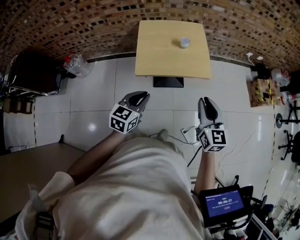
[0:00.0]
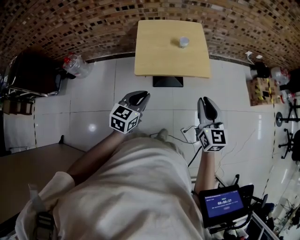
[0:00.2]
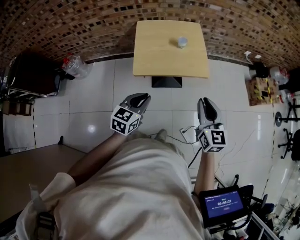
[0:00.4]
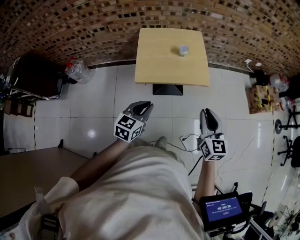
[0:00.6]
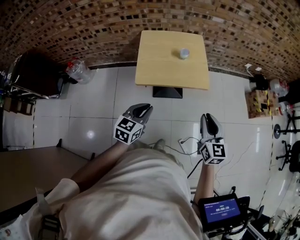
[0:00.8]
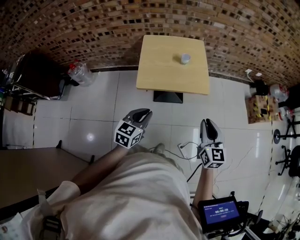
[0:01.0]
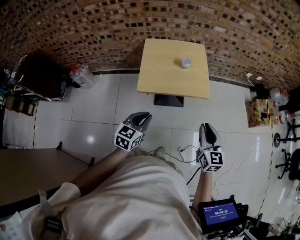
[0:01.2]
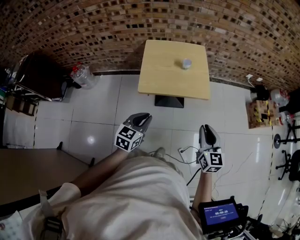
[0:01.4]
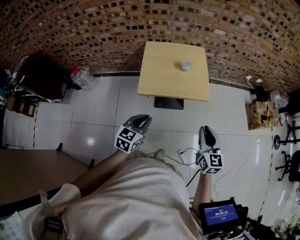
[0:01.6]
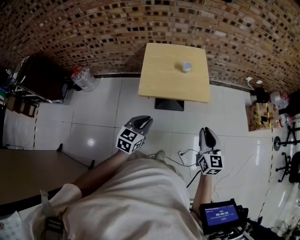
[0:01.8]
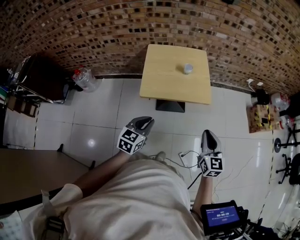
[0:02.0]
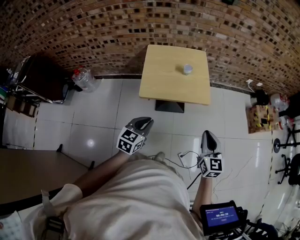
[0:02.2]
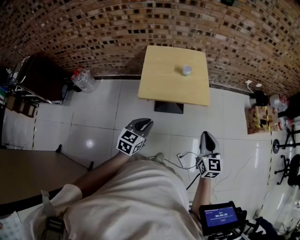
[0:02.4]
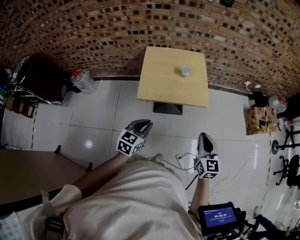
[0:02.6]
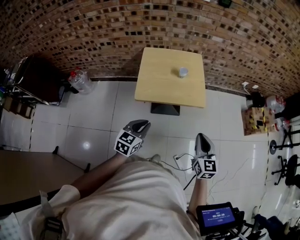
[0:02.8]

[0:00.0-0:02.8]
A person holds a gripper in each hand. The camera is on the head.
0:00.0 to 0:01.4: The right gripper moves roughly 5 cm.
0:01.4 to 0:02.8: Both grippers stay about where they are.

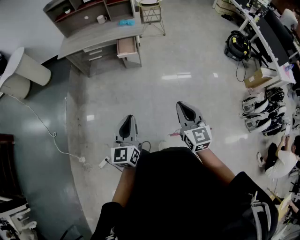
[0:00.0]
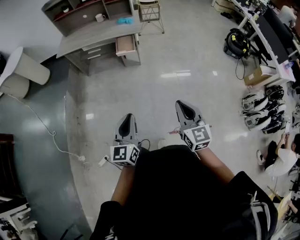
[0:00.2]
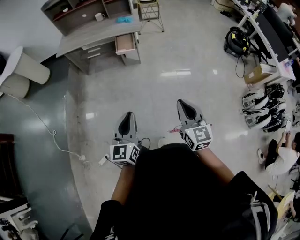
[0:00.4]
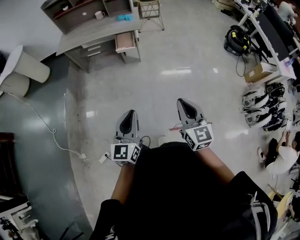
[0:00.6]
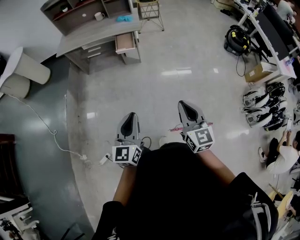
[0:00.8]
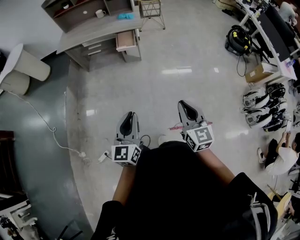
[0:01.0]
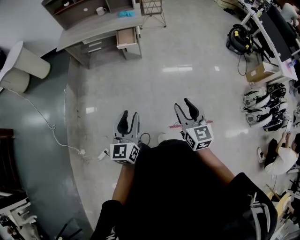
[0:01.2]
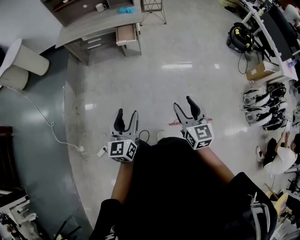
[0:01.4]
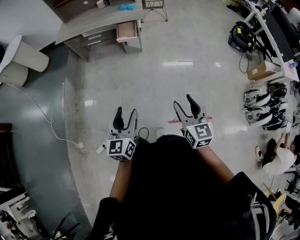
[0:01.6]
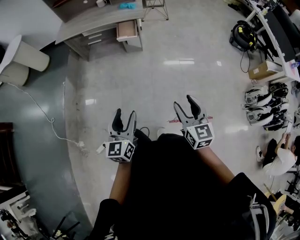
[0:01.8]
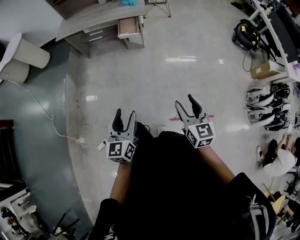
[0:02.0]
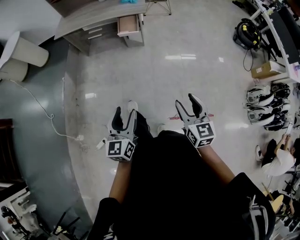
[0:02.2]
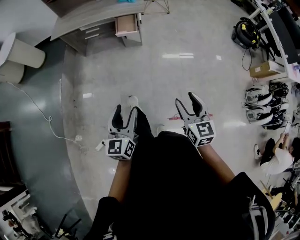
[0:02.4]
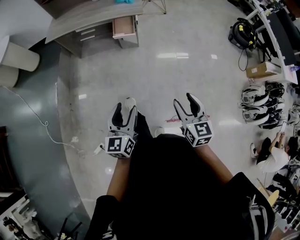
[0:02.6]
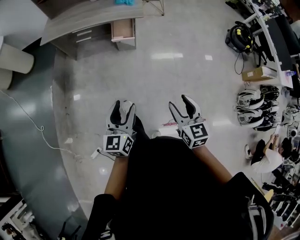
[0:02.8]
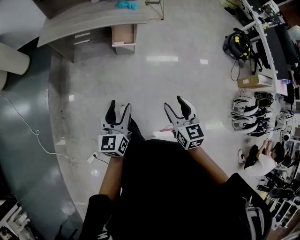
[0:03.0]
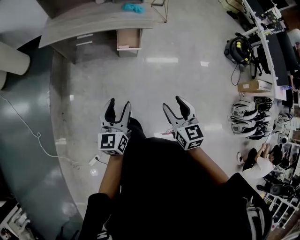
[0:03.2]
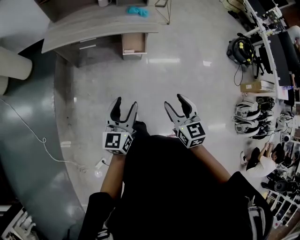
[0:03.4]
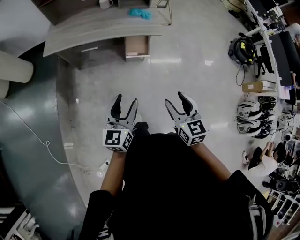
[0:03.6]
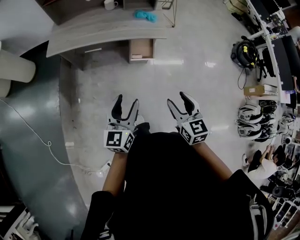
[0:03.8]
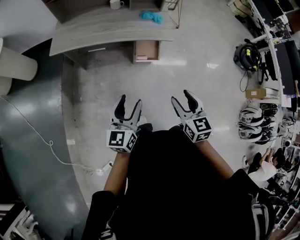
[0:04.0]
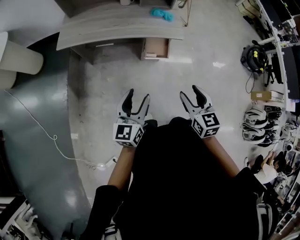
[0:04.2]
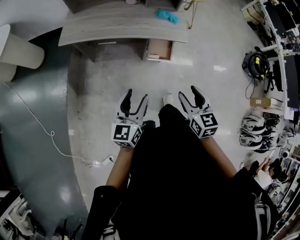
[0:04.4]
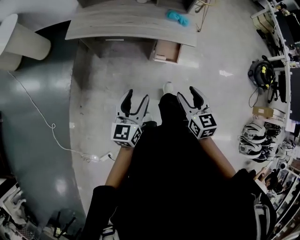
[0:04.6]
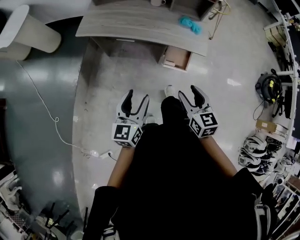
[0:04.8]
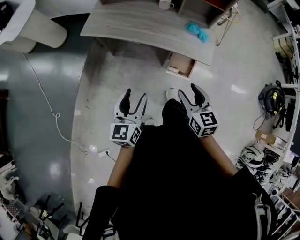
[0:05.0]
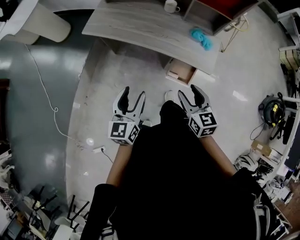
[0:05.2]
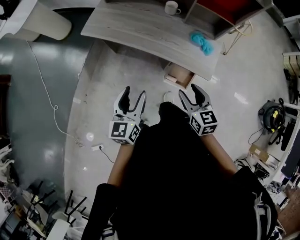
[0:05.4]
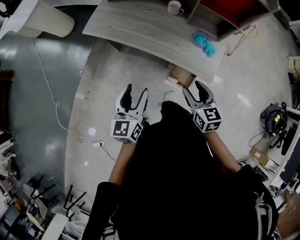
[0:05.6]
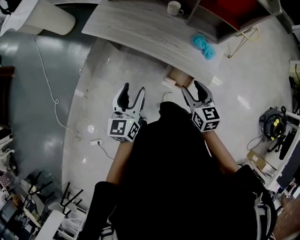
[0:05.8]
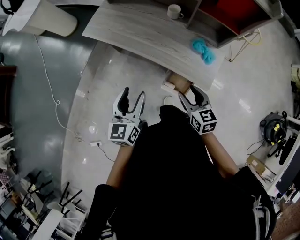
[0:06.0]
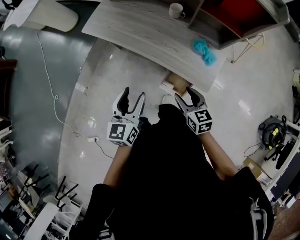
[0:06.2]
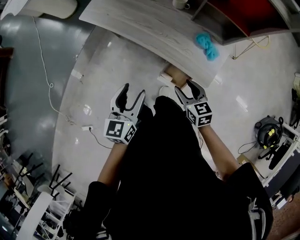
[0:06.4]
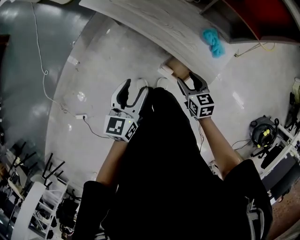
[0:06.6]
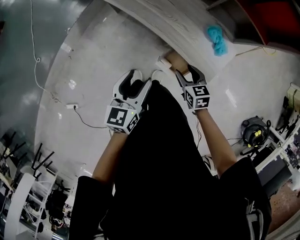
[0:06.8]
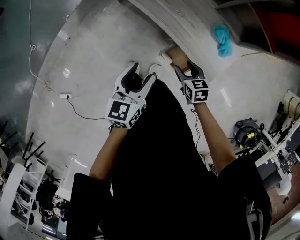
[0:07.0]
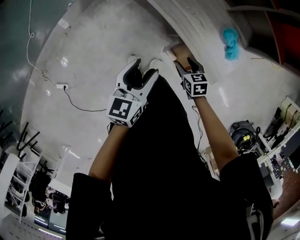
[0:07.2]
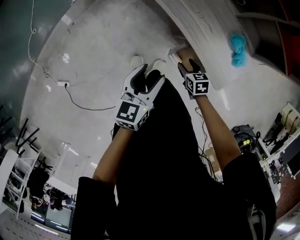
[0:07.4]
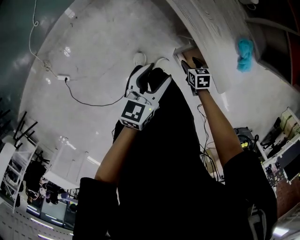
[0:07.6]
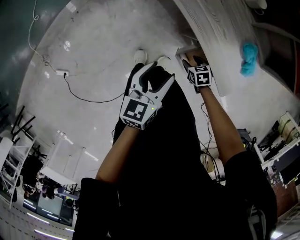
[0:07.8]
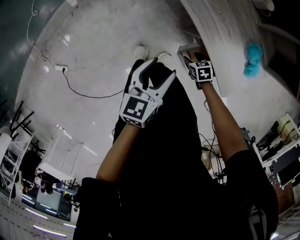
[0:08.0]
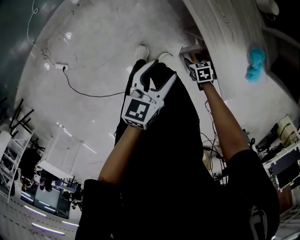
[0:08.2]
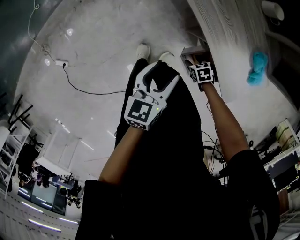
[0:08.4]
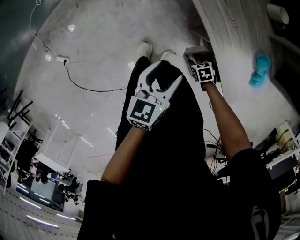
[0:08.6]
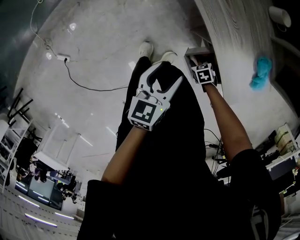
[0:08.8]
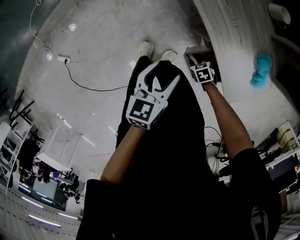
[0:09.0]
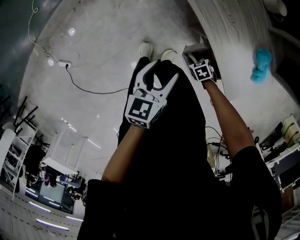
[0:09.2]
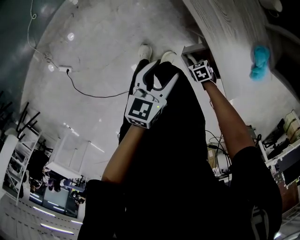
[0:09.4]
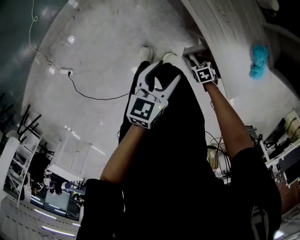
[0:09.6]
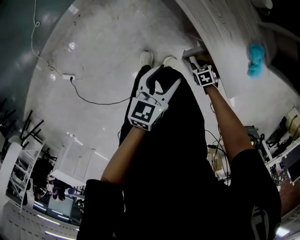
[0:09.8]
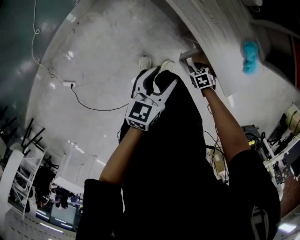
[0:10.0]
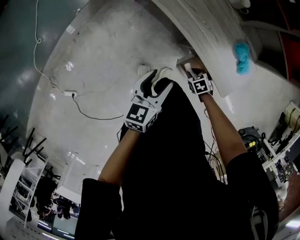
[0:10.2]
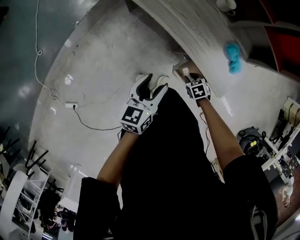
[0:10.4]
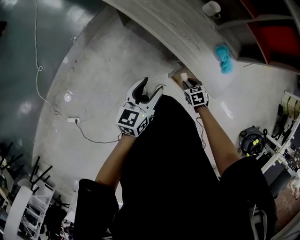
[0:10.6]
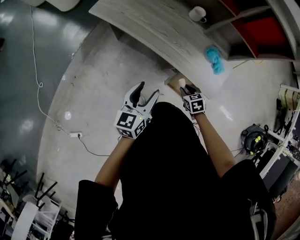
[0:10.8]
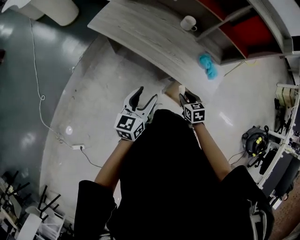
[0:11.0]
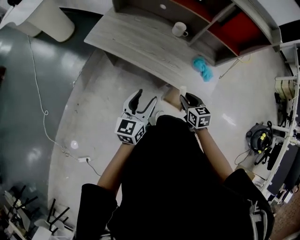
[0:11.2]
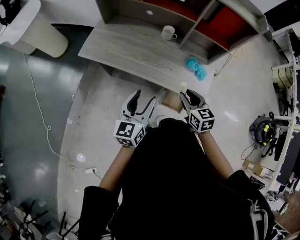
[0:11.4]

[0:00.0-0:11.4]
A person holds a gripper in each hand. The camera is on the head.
0:00.0 to 0:01.4: The right gripper shifts by roughly 5 cm, and opens up. The left gripper opens up.
0:01.4 to 0:02.8: Both grippers travel together forward, approximately 20 cm.
0:02.8 to 0:04.2: The grippers both shift forward and to the left by approximately 35 cm.
0:04.2 to 0:05.6: The right gripper moves about 35 cm, and swivels some 30 degrees. The left gripper moves some 25 cm, and turns by roughly 30 degrees.
0:05.6 to 0:07.2: The left gripper shifts approximately 15 cm downward; the right gripper goes approximately 30 cm downward, and changes its angle by about 40 degrees.
0:07.2 to 0:08.6: The left gripper heads downward, covering roughly 10 cm, while the right gripper shifts approximately 20 cm downward, and turns by roughly 30 degrees.
0:08.6 to 0:10.0: The right gripper is displaced upward by roughly 5 cm.
0:10.0 to 0:11.4: The left gripper travels upward by approximately 20 cm, and rotates about 30 degrees. Meanwhile the right gripper travels upward by approximately 40 cm, and tips its fingers upward by some 40 degrees.

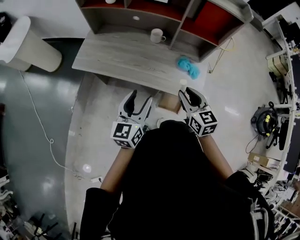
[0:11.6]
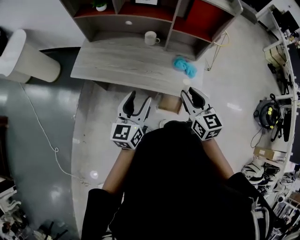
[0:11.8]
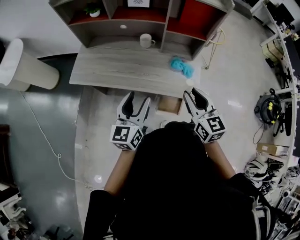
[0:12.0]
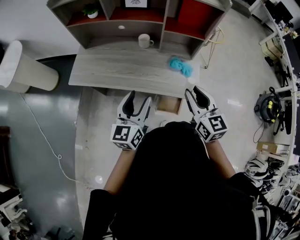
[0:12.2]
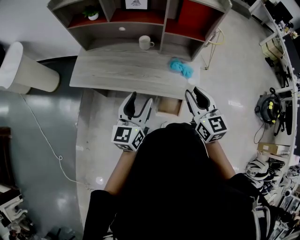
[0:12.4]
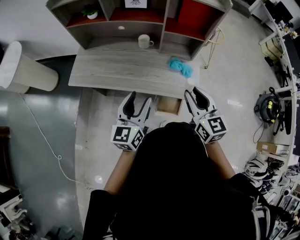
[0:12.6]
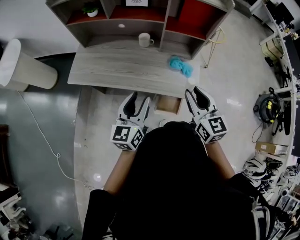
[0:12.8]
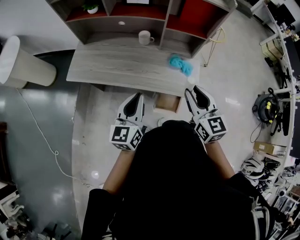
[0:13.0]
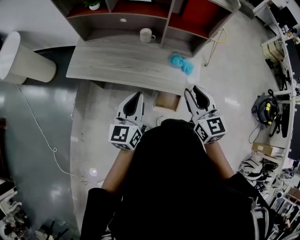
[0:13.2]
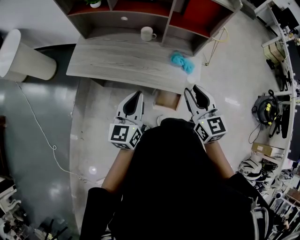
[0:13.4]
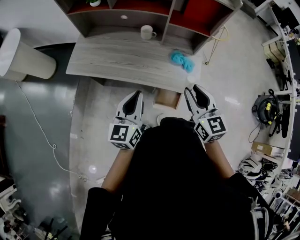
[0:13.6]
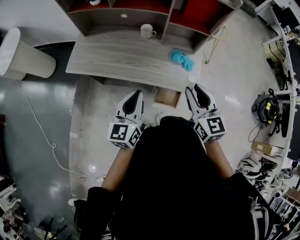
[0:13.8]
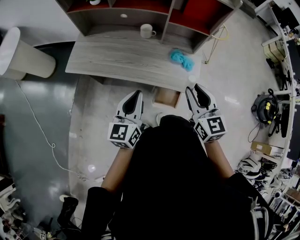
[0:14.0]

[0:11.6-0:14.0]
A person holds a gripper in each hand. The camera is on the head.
0:11.6 to 0:12.8: The right gripper is displaced upward and to the right by approximately 10 cm.
0:12.8 to 0:14.0: The left gripper closes up.

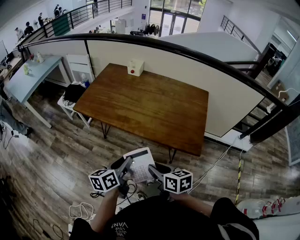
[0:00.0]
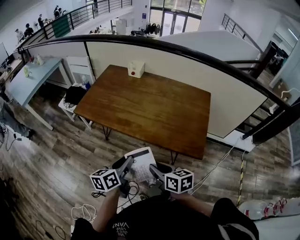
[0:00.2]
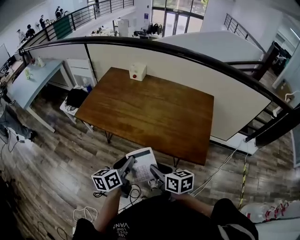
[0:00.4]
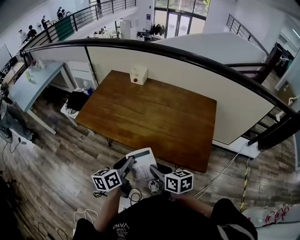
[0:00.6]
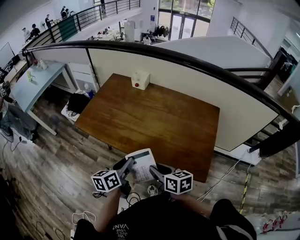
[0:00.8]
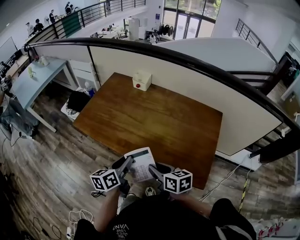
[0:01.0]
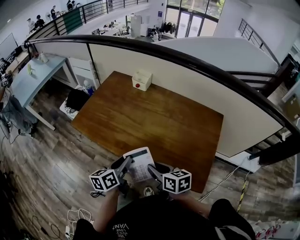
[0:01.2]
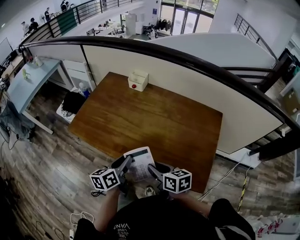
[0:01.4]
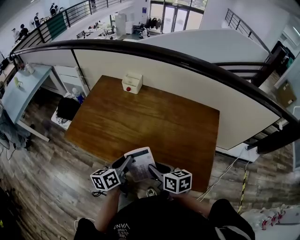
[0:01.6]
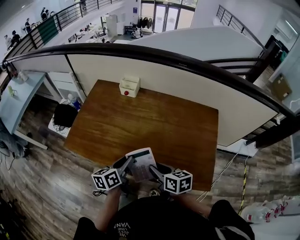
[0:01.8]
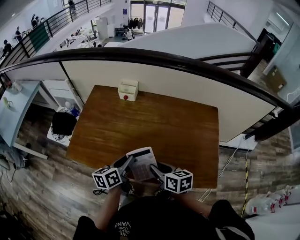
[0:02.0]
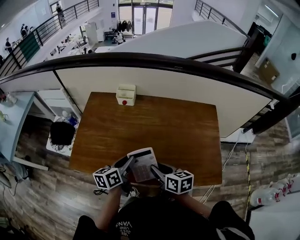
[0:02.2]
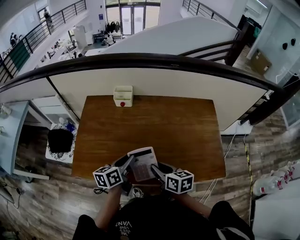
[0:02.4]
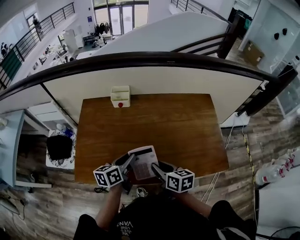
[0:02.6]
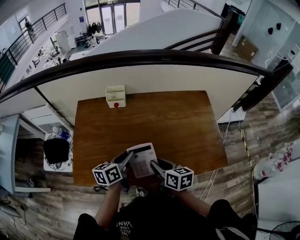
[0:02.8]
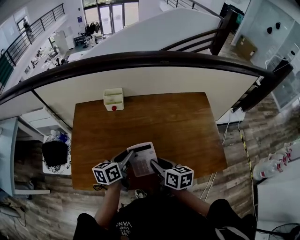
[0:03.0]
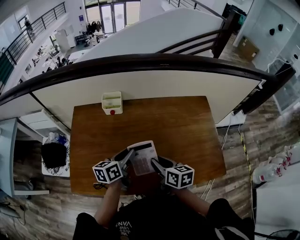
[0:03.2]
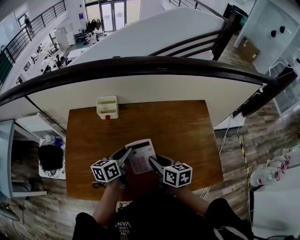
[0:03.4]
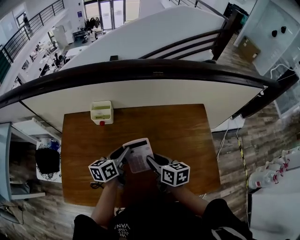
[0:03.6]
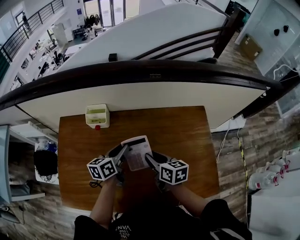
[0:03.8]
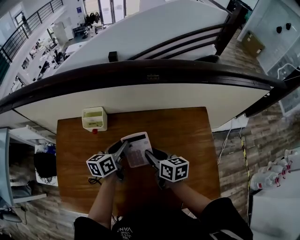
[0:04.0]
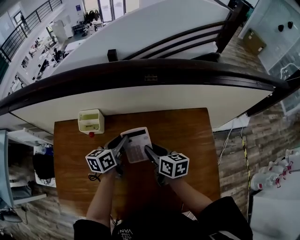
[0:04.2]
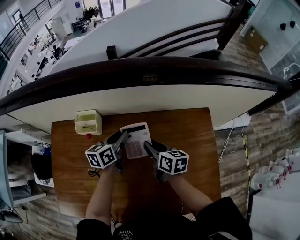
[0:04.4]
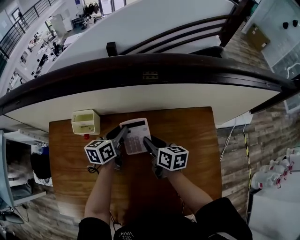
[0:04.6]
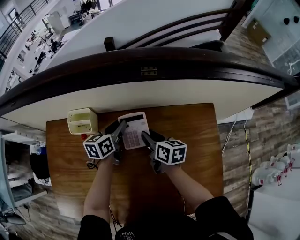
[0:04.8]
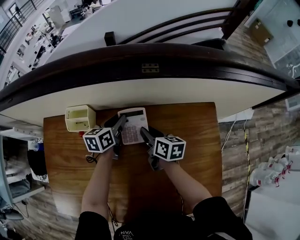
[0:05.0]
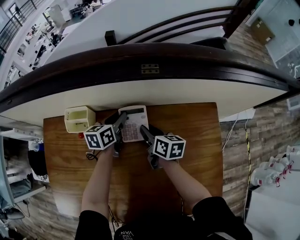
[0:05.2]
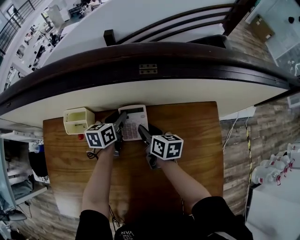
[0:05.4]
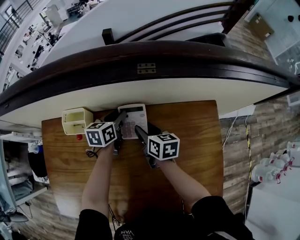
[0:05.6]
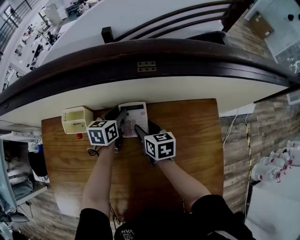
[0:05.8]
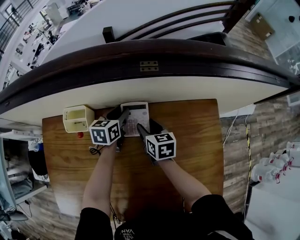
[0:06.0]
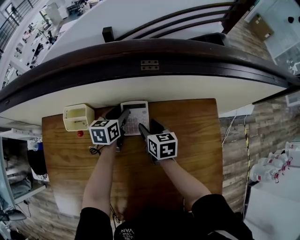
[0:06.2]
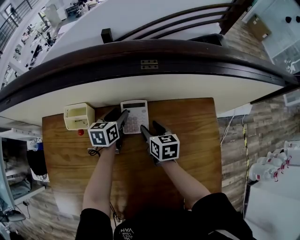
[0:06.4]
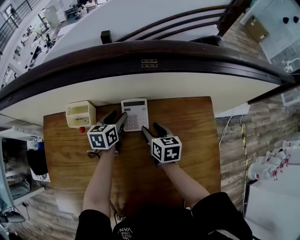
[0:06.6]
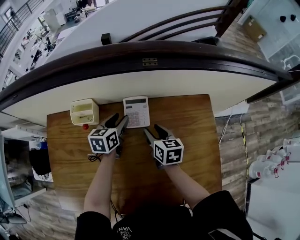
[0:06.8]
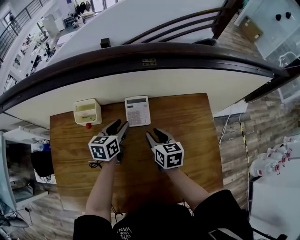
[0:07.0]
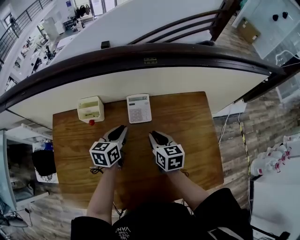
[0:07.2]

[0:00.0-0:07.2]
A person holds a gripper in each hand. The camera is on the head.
0:00.0 to 0:01.4: The grippers both shift forward by about 25 cm.
0:01.4 to 0:02.8: The left gripper changes place by some 20 cm, and changes its angle by approximately 30 degrees. The right gripper moves roughly 15 cm, and turns by some 30 degrees.
0:02.8 to 0:04.4: Both grippers move forward, roughly 30 cm.
0:04.4 to 0:05.8: Both grippers move forward and downward, about 10 cm.
0:05.8 to 0:07.2: The grippers both shift backward and upward by about 15 cm. The right gripper closes.
